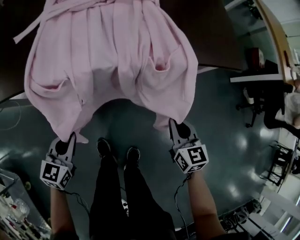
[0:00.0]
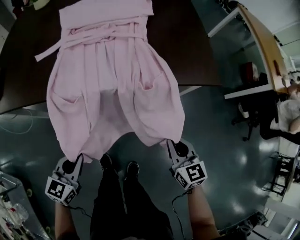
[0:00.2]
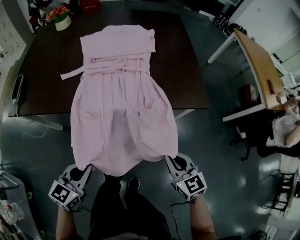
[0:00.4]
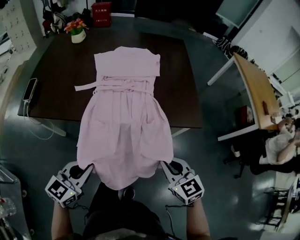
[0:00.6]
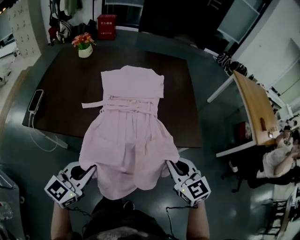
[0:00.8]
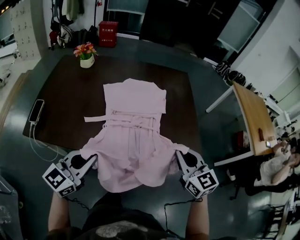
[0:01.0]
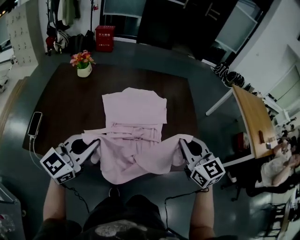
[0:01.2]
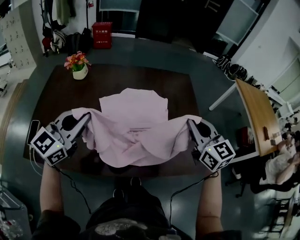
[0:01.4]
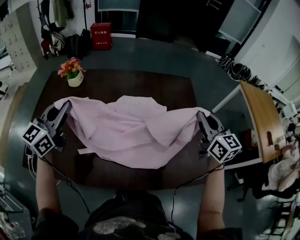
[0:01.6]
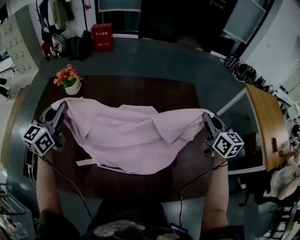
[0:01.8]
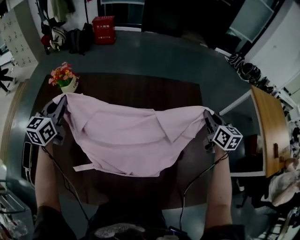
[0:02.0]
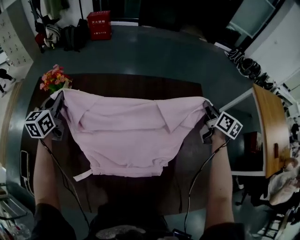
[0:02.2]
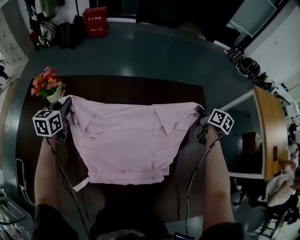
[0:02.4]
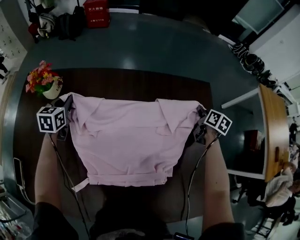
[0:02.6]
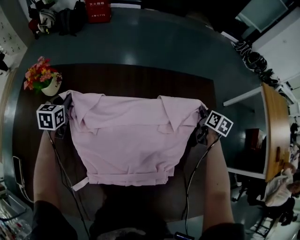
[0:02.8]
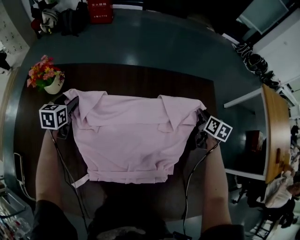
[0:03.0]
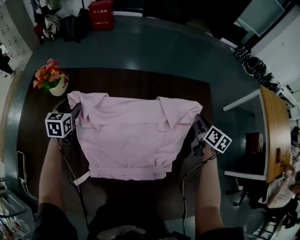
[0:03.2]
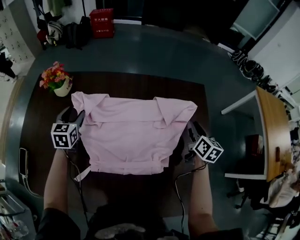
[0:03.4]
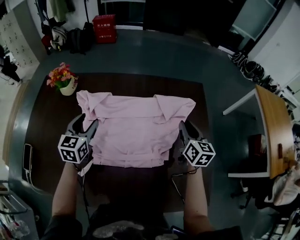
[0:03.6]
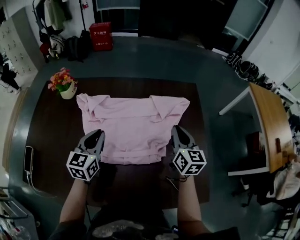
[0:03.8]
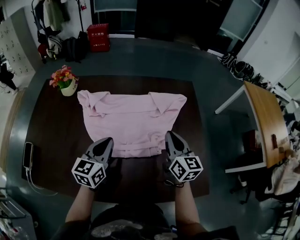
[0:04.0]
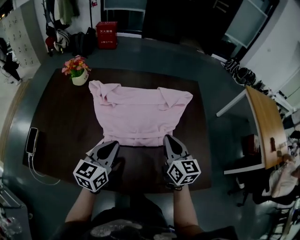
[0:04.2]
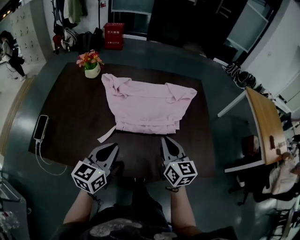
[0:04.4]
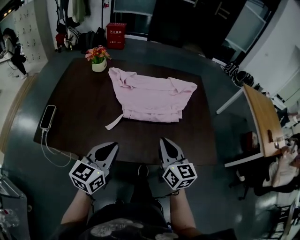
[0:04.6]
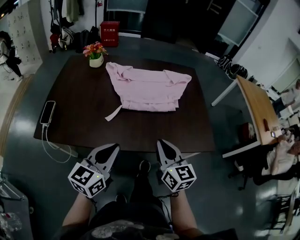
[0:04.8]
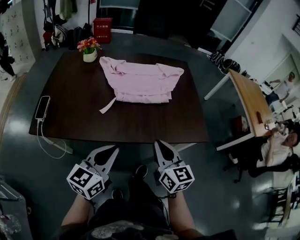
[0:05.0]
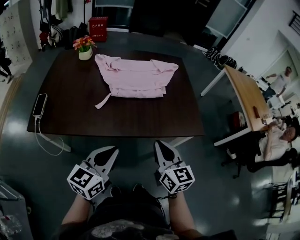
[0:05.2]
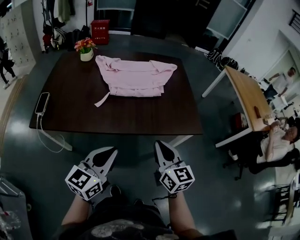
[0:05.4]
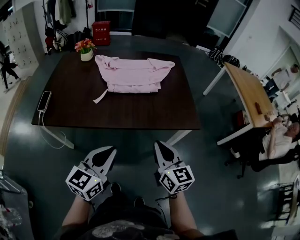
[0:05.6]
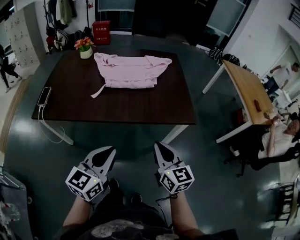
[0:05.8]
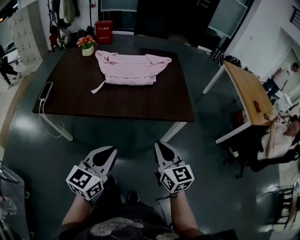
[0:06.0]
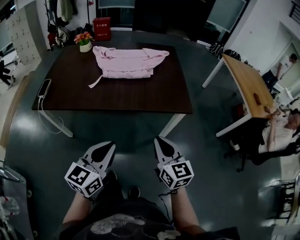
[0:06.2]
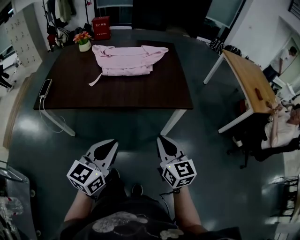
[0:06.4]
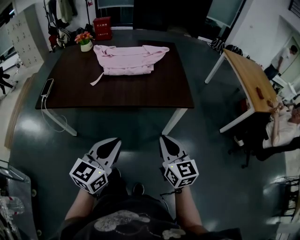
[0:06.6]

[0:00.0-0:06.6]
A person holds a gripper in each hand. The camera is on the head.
0:00.0 to 0:01.6: The two grippers travel together, forward, roughly 40 cm. Both grippers move upward, some 50 cm. The right gripper rotates roughly 30 degrees. Meanwhile the left gripper tips its fingers upward by approximately 30 degrees.
0:01.6 to 0:03.2: Both grippers travel together forward and downward, about 35 cm. The right gripper turns by roughly 40 degrees, and opens. The left gripper tips its fingers downward by some 40 degrees, and opens up.
0:03.2 to 0:05.0: The left gripper moves backward, some 60 cm, rotates some 40 degrees, and closes its fingers. The right gripper shifts some 70 cm backward and to the left, rotates roughly 30 degrees, and closes its fingers.
0:05.0 to 0:06.6: The right gripper is displaced to the right and backward by approximately 25 cm, while the left gripper heads backward and to the right, covering some 25 cm.

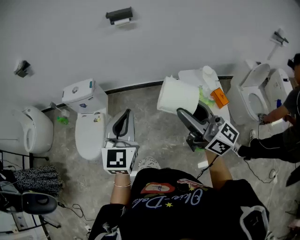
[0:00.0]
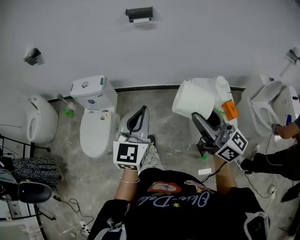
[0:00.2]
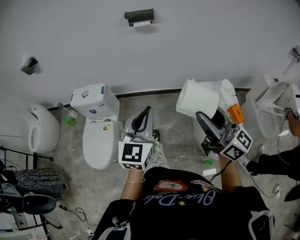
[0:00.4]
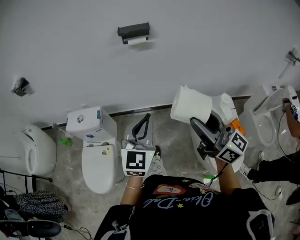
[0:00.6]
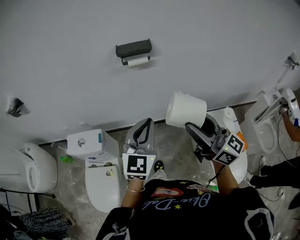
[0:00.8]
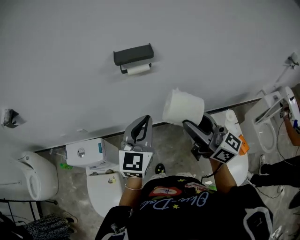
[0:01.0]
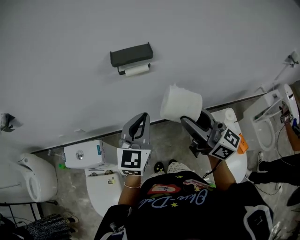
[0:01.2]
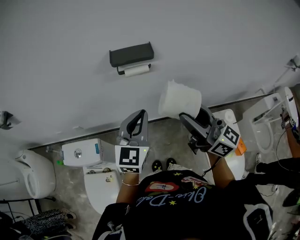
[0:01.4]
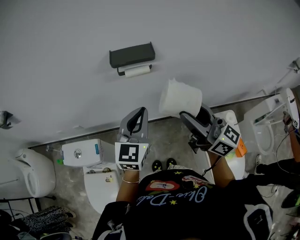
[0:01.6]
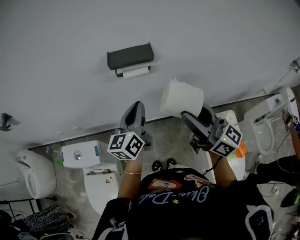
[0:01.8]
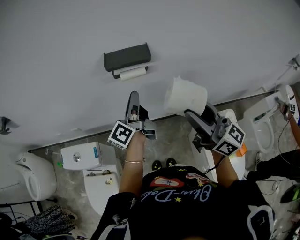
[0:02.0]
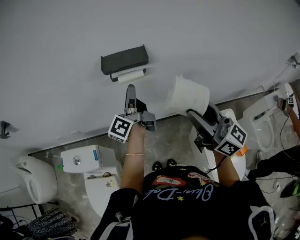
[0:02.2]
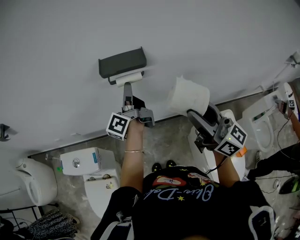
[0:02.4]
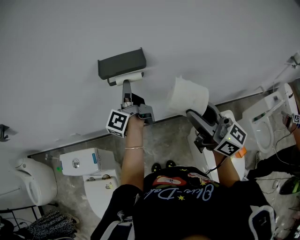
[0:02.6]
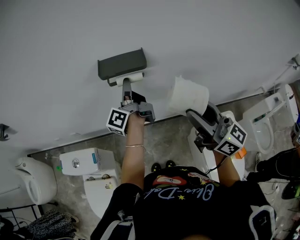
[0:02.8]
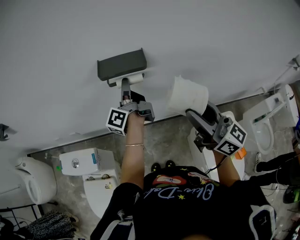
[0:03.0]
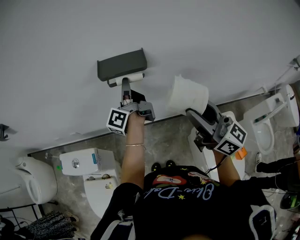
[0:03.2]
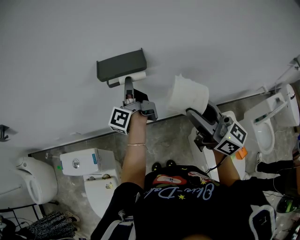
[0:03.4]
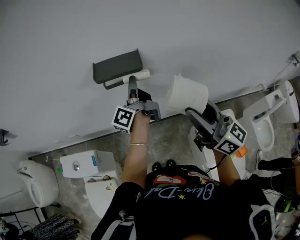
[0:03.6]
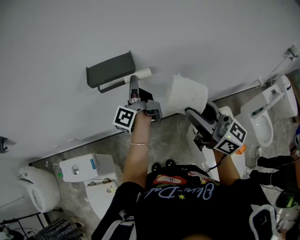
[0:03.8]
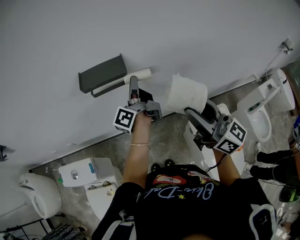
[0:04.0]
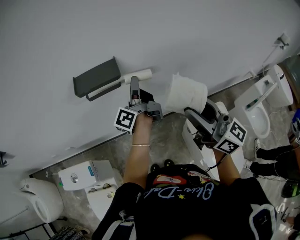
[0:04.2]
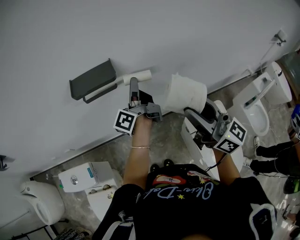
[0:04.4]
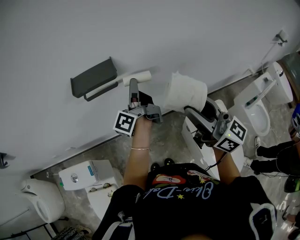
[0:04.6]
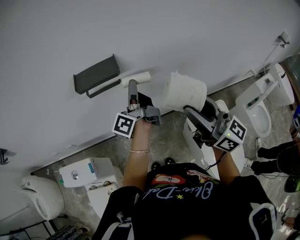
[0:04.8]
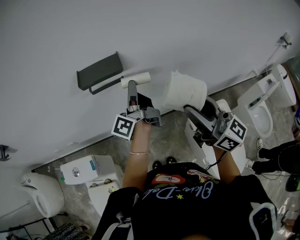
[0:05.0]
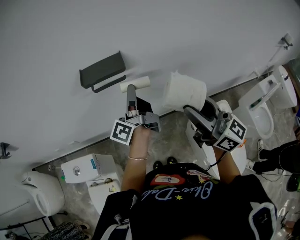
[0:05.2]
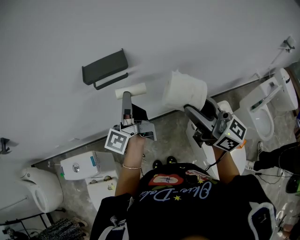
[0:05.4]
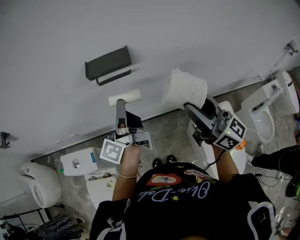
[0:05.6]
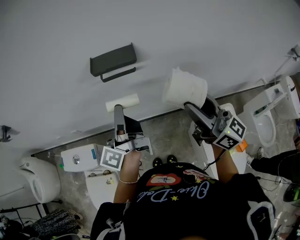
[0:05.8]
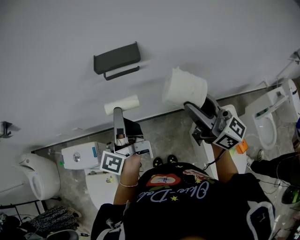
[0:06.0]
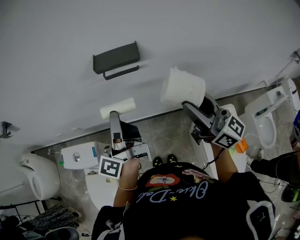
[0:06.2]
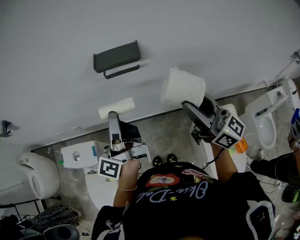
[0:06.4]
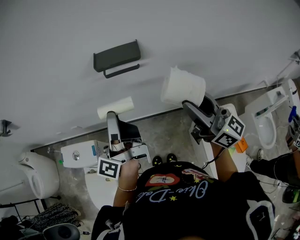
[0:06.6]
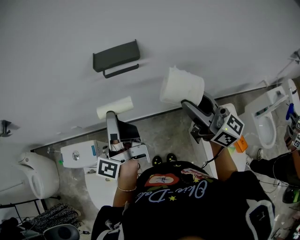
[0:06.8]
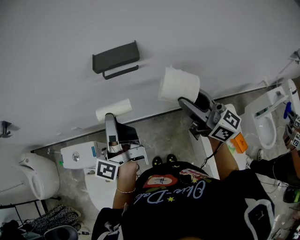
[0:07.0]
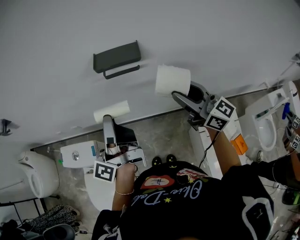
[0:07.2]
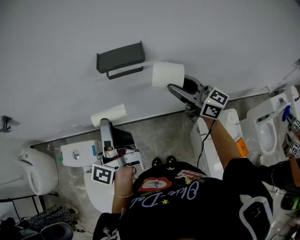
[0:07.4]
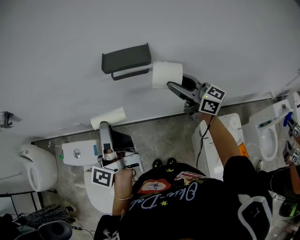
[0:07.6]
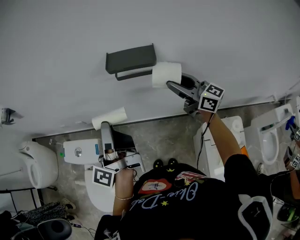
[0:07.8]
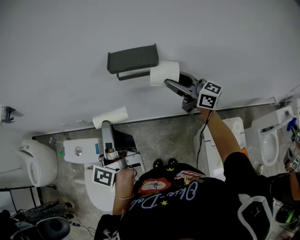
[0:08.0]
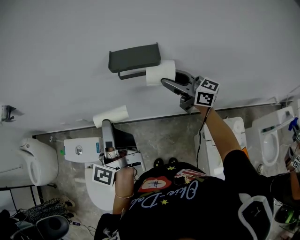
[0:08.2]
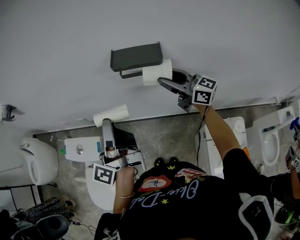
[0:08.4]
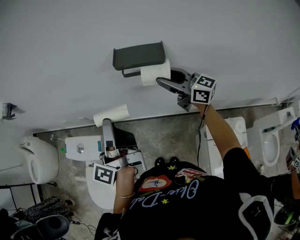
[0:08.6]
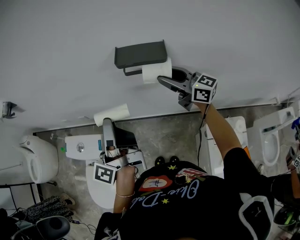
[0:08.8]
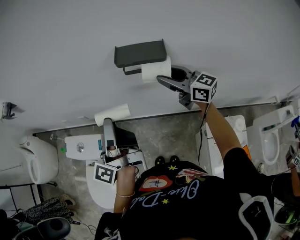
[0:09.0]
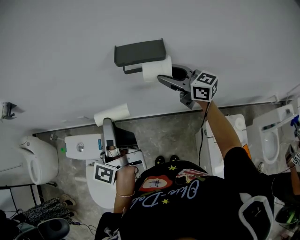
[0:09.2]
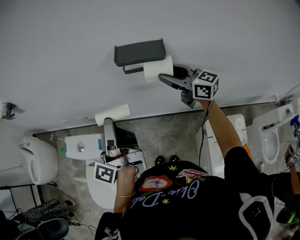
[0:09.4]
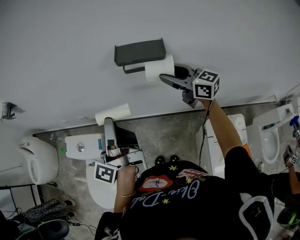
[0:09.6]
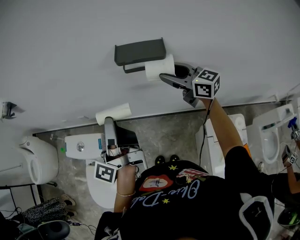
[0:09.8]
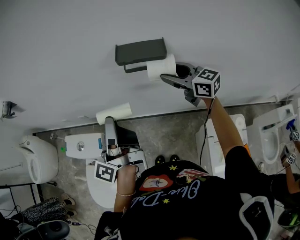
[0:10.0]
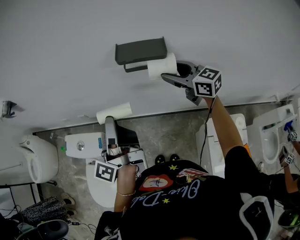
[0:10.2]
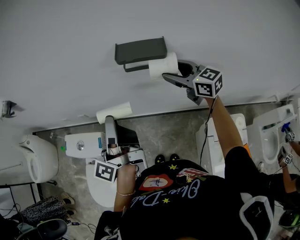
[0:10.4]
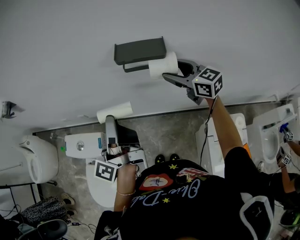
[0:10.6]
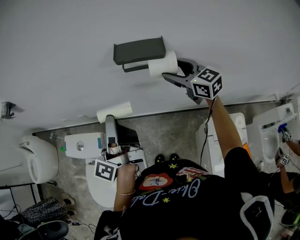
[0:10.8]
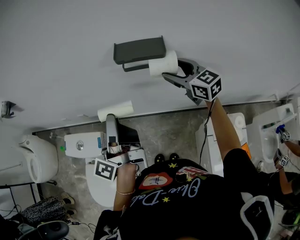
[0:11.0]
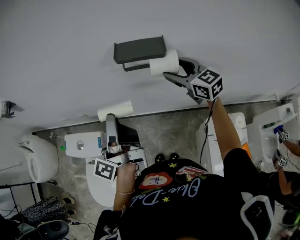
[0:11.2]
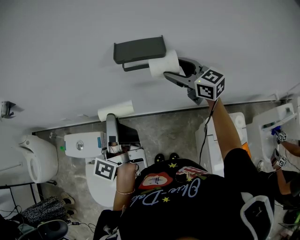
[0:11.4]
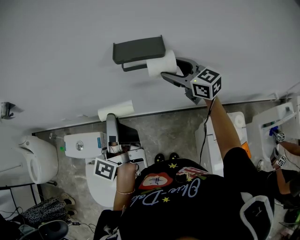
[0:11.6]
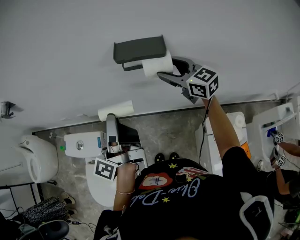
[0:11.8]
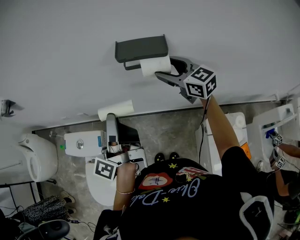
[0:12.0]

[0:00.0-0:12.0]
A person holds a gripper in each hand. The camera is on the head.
0:00.0 to 0:01.6: The pair of grippers is taken forward, about 50 cm.
0:01.6 to 0:03.0: The left gripper heads forward, covering approximately 20 cm, rolls counterclockwise, seen from behind, by approximately 80 degrees, and opens. Meanwhile the right gripper ends up approximately 5 cm from where it was.
0:03.0 to 0:04.4: The left gripper is displaced to the right by roughly 10 cm.
0:04.4 to 0:06.0: The left gripper heads to the left and backward, covering about 20 cm.
0:06.0 to 0:07.6: The left gripper goes about 5 cm to the left. The right gripper moves forward and downward, roughly 15 cm.
0:07.6 to 0:09.0: The right gripper travels forward by approximately 5 cm.
0:09.0 to 0:10.4: The grippers make only small movements.
0:10.4 to 0:12.0: The grippers move only a little.

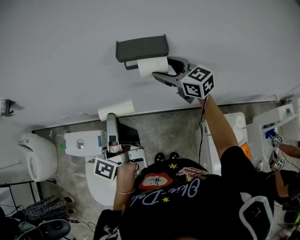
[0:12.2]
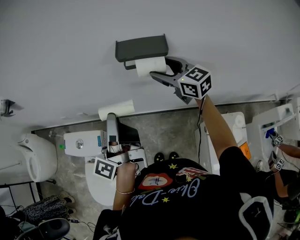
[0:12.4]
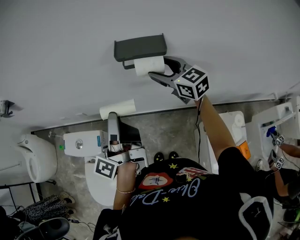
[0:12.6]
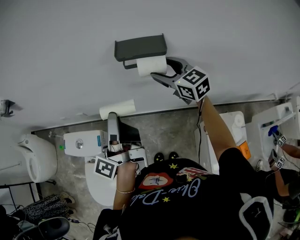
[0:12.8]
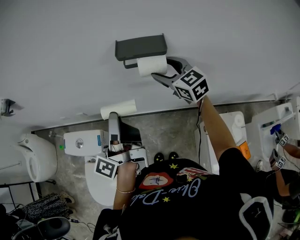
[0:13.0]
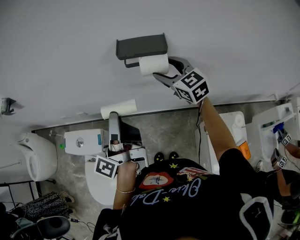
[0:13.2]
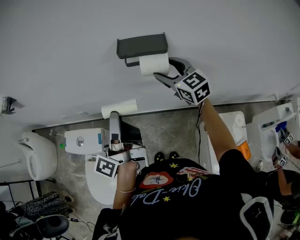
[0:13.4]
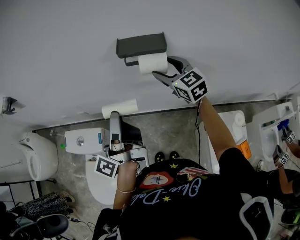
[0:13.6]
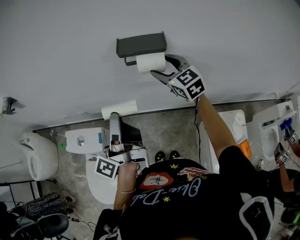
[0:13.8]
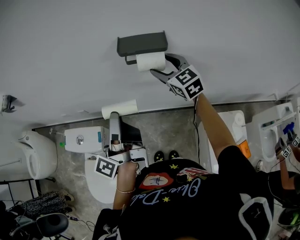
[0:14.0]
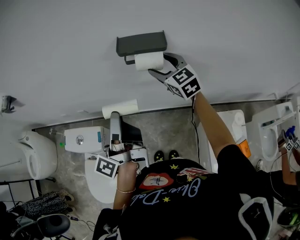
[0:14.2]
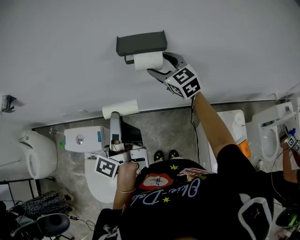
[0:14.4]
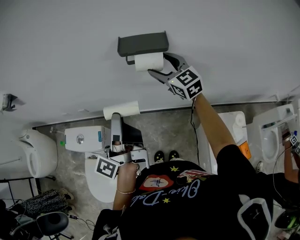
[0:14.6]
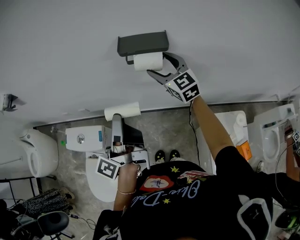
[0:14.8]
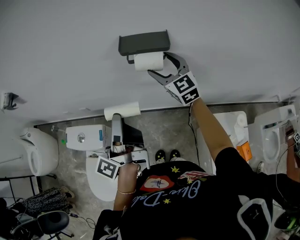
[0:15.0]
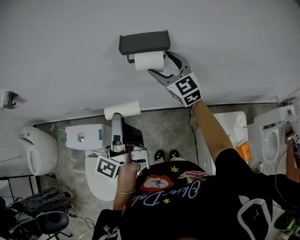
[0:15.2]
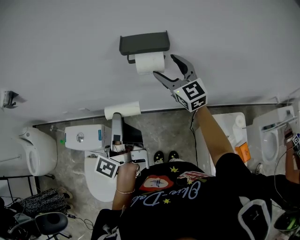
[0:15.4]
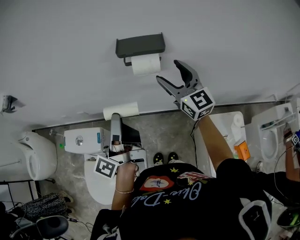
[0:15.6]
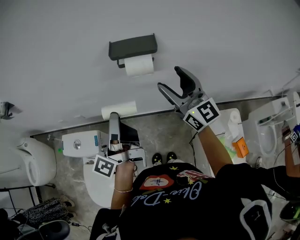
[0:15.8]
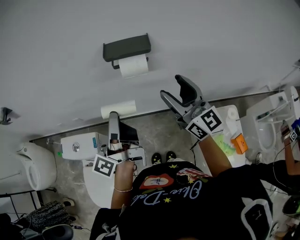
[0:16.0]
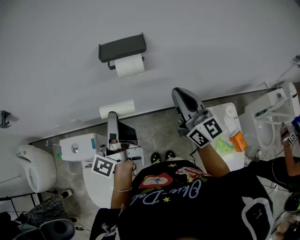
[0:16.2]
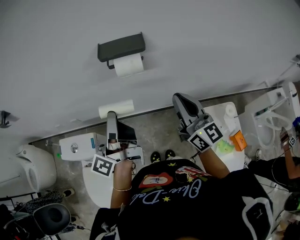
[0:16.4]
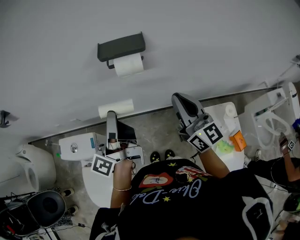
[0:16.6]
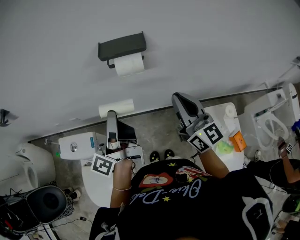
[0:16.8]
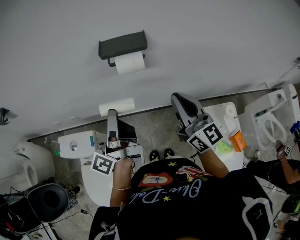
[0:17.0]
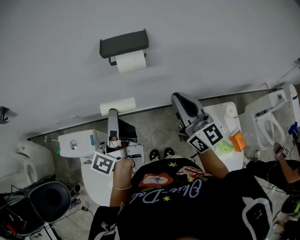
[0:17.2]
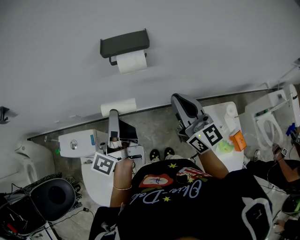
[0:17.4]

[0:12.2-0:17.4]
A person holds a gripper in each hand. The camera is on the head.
0:12.2 to 0:14.0: The grippers stay close to where they were, moving slightly.
0:14.0 to 0:15.6: The right gripper is displaced backward by about 5 cm, and swivels about 20 degrees.
0:15.6 to 0:17.4: The right gripper heads backward, covering approximately 15 cm, and closes its fingers.
